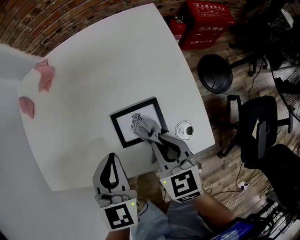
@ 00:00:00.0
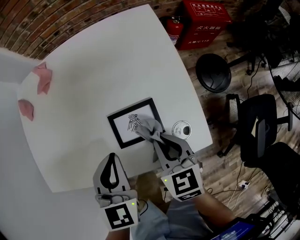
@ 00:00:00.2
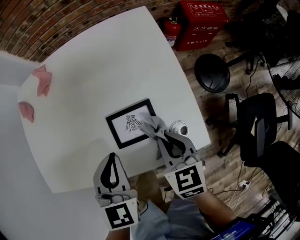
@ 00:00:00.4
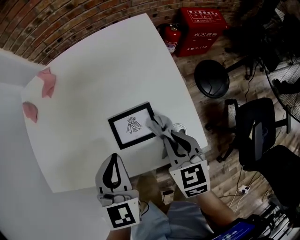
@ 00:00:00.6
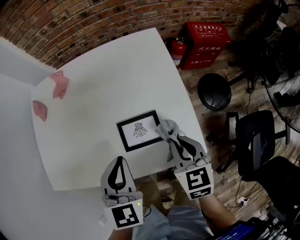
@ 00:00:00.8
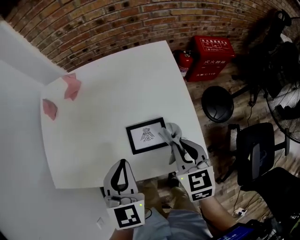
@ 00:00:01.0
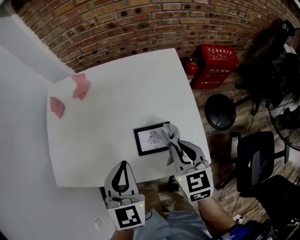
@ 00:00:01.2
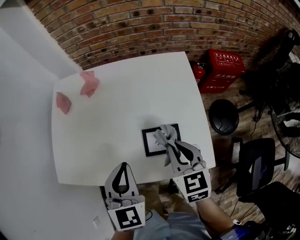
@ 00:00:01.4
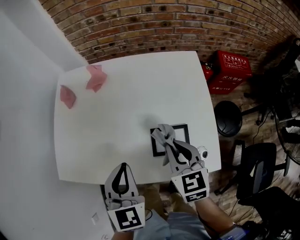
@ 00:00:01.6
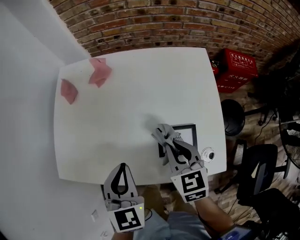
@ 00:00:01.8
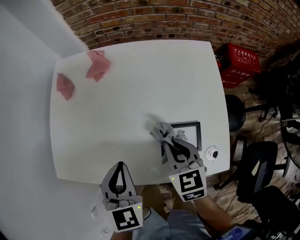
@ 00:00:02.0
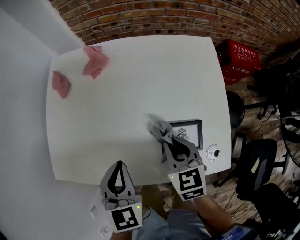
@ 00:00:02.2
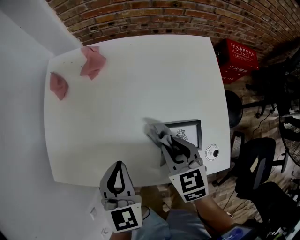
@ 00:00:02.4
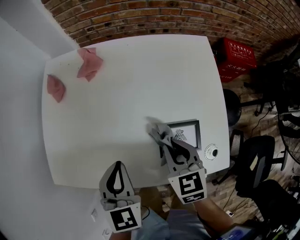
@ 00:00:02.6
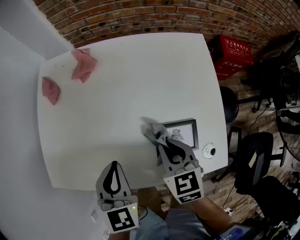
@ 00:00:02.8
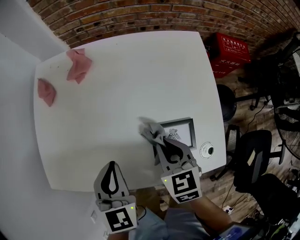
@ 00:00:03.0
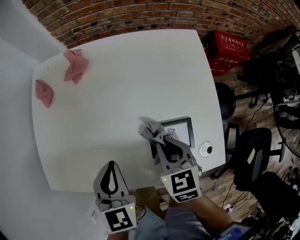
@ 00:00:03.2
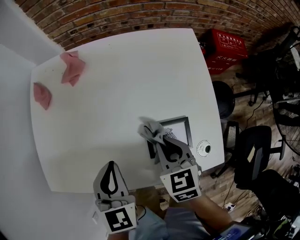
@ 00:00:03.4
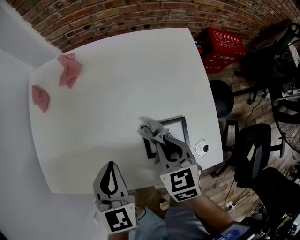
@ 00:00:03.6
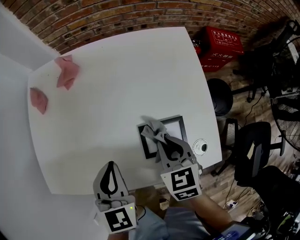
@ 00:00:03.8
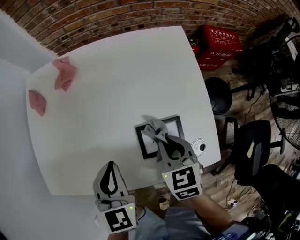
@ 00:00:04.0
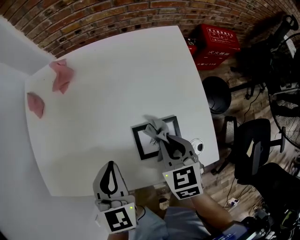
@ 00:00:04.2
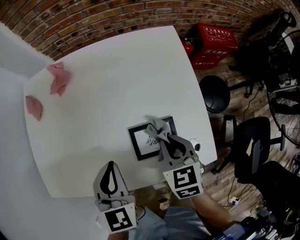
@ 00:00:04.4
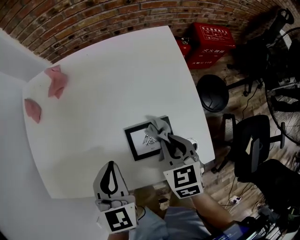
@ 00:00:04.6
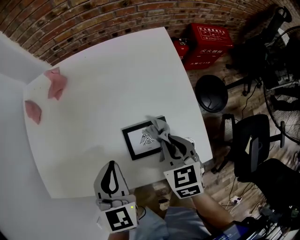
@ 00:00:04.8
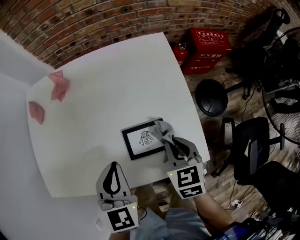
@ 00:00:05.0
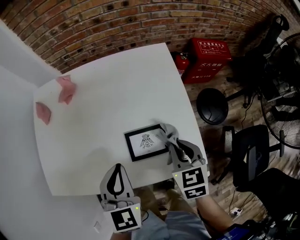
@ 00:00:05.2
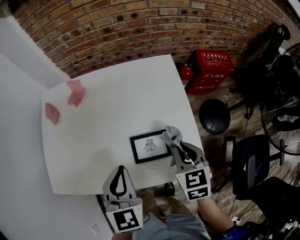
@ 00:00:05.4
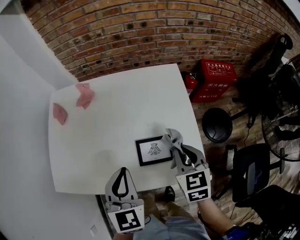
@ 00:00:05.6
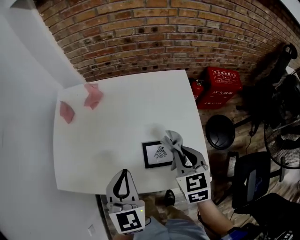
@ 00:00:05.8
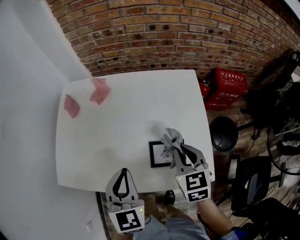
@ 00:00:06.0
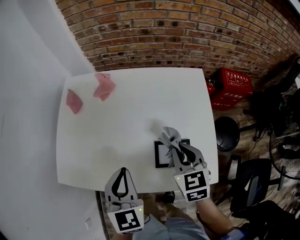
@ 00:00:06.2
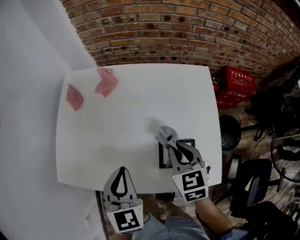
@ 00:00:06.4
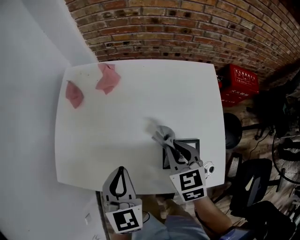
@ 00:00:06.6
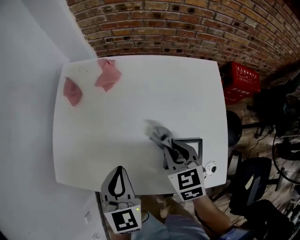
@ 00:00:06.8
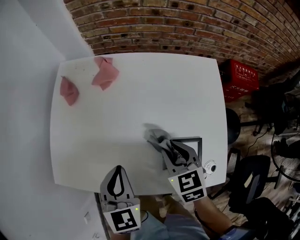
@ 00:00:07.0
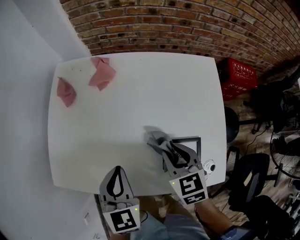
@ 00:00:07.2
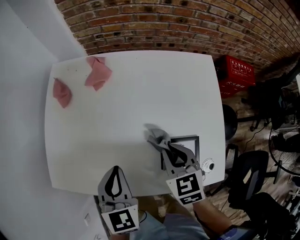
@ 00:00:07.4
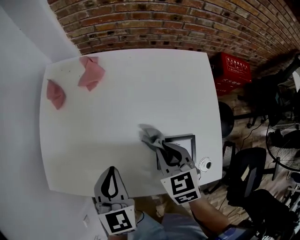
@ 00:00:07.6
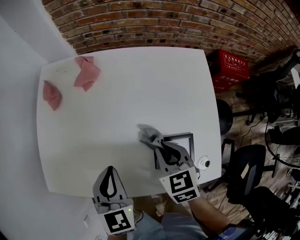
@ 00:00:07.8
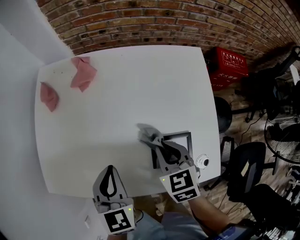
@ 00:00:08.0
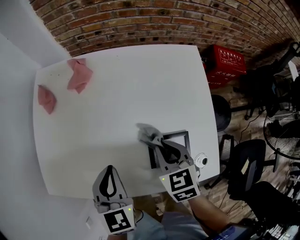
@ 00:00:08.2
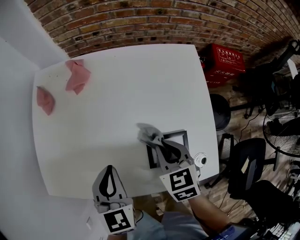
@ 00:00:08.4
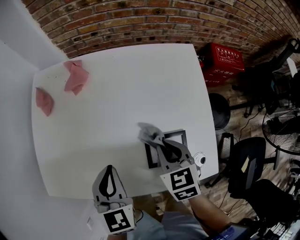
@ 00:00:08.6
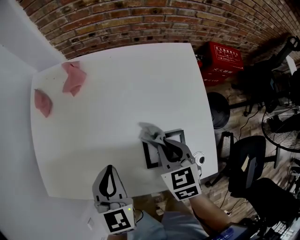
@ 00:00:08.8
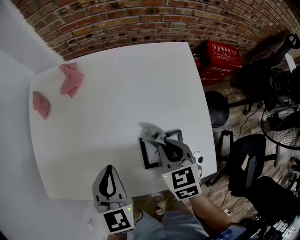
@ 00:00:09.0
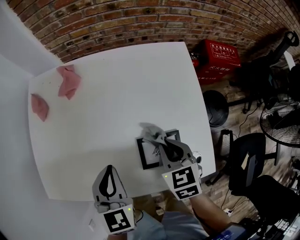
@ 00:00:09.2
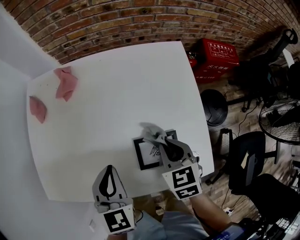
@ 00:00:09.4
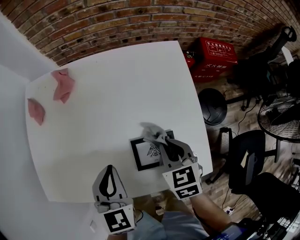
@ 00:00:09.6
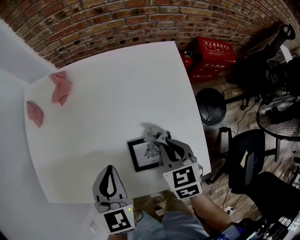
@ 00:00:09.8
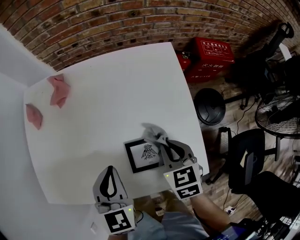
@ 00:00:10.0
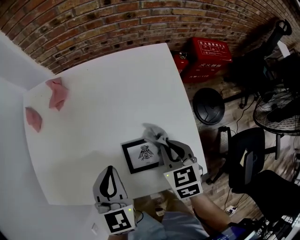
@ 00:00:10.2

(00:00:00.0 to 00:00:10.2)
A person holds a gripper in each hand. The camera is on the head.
00:00:00.0 - 00:00:01.4: The grippers both shift upward by some 10 cm.
00:00:01.4 - 00:00:03.0: Both grippers move downward and to the left, some 10 cm.
00:00:03.0 - 00:00:04.4: The grippers both shift to the right by about 5 cm.
00:00:04.4 - 00:00:05.8: The grippers both shift upward by approximately 10 cm.
00:00:05.8 - 00:00:07.2: The right gripper is displaced to the left, downward and forward by about 15 cm; the left gripper travels to the left and downward by approximately 10 cm.
00:00:07.2 - 00:00:08.8: The right gripper goes about 5 cm to the right.
00:00:08.8 - 00:00:10.2: The grippers both shift to the right by approximately 10 cm.

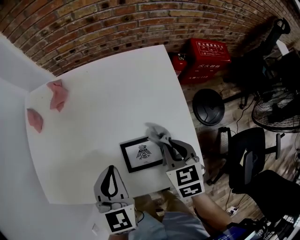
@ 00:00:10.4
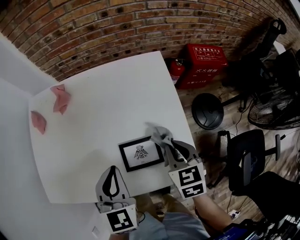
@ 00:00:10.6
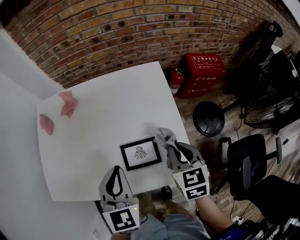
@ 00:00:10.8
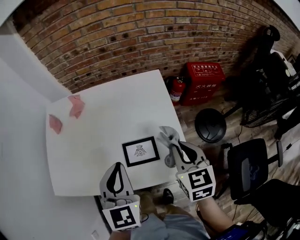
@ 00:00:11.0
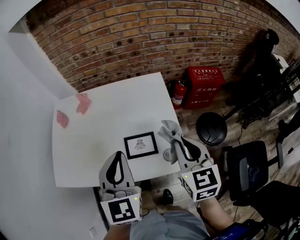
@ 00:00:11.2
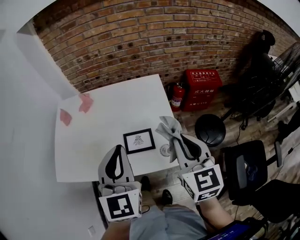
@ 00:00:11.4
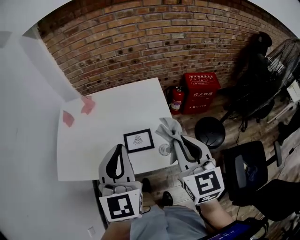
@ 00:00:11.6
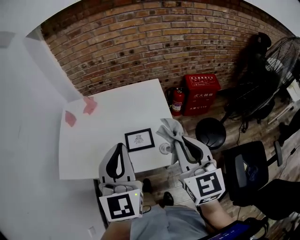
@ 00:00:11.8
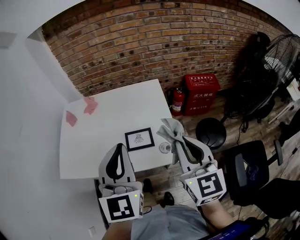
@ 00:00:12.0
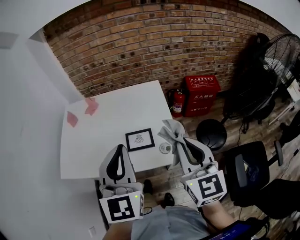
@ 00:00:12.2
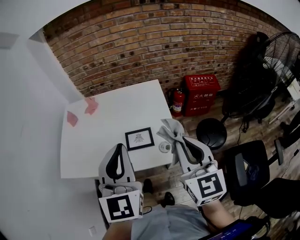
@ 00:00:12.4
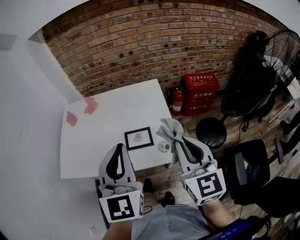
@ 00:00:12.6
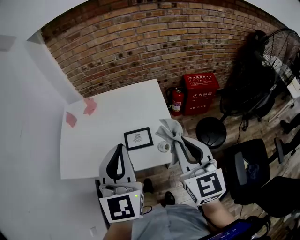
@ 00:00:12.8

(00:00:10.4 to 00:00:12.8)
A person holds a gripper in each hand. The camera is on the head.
00:00:10.4 - 00:00:11.6: Both grippers move upward and backward, roughly 30 cm. The left gripper rotates approximately 30 degrees. The right gripper tips its fingers upward by about 40 degrees.
00:00:11.6 - 00:00:12.8: The grippers stay close to where they were, moving slightly.

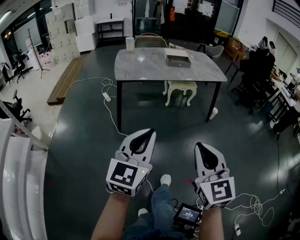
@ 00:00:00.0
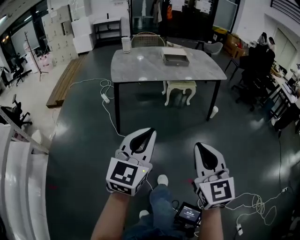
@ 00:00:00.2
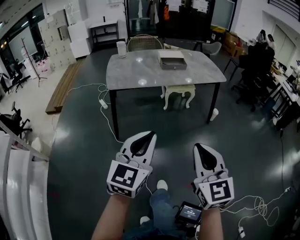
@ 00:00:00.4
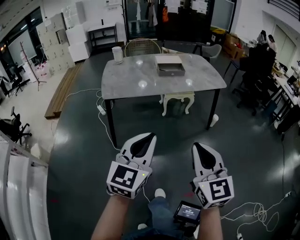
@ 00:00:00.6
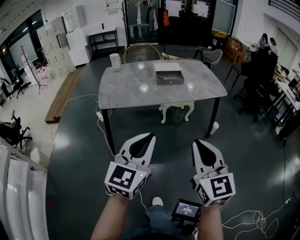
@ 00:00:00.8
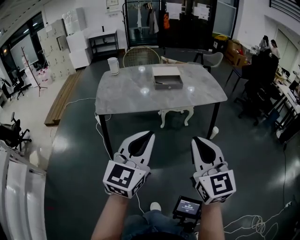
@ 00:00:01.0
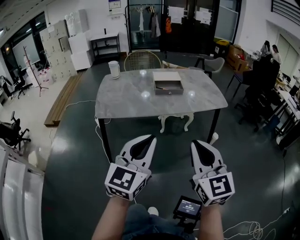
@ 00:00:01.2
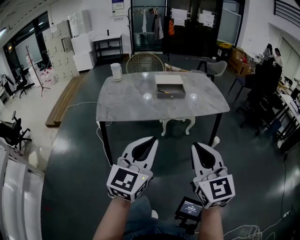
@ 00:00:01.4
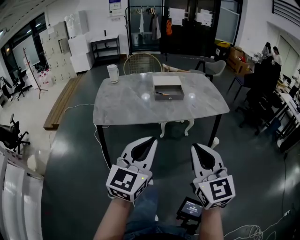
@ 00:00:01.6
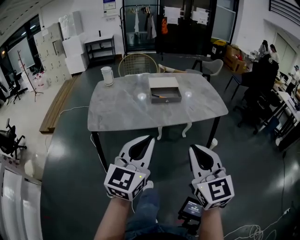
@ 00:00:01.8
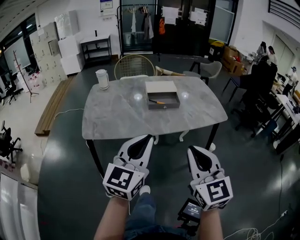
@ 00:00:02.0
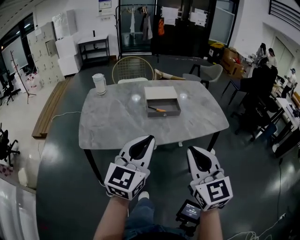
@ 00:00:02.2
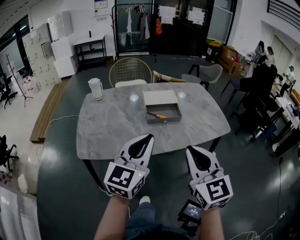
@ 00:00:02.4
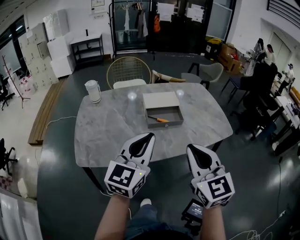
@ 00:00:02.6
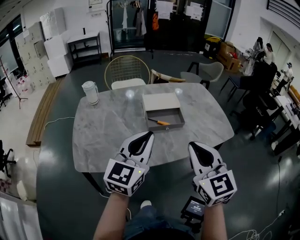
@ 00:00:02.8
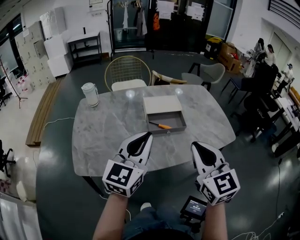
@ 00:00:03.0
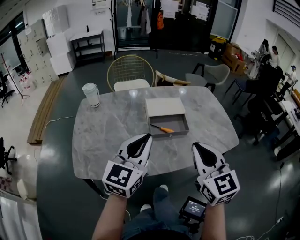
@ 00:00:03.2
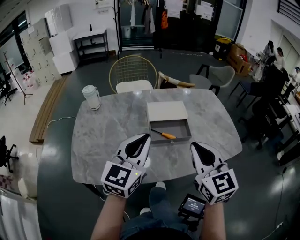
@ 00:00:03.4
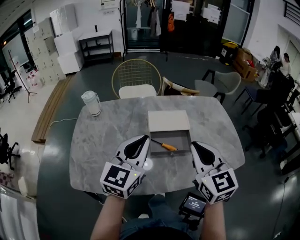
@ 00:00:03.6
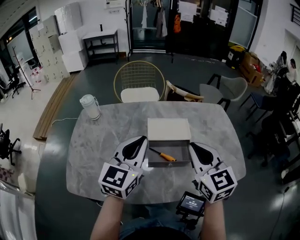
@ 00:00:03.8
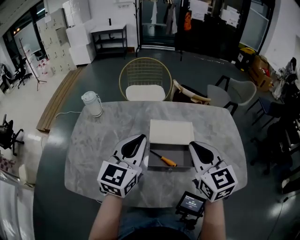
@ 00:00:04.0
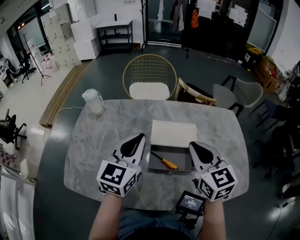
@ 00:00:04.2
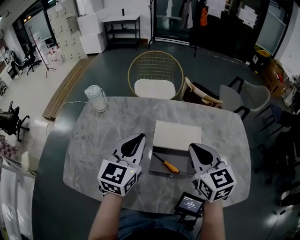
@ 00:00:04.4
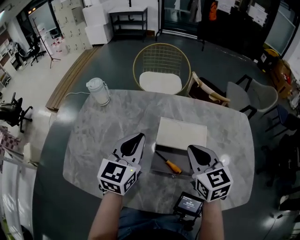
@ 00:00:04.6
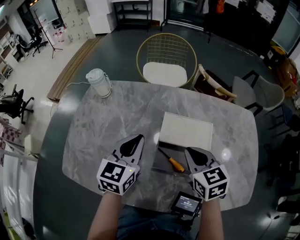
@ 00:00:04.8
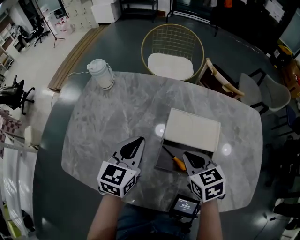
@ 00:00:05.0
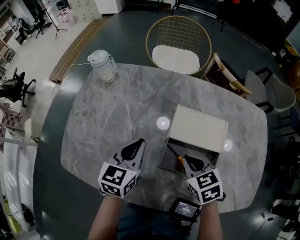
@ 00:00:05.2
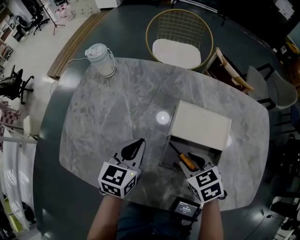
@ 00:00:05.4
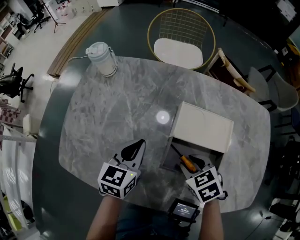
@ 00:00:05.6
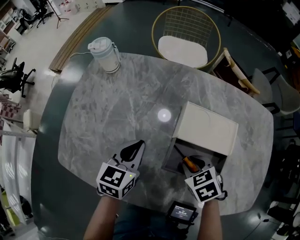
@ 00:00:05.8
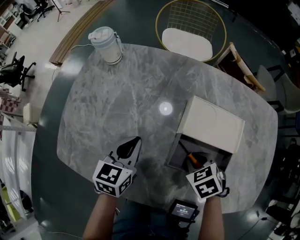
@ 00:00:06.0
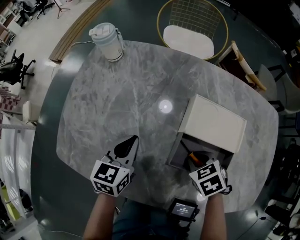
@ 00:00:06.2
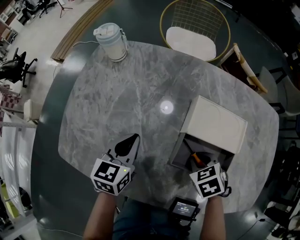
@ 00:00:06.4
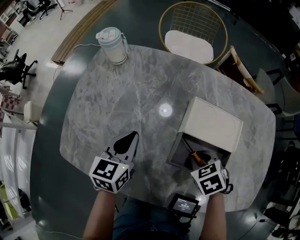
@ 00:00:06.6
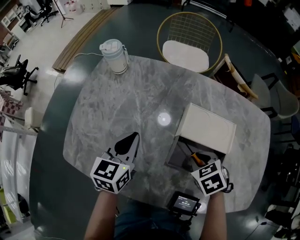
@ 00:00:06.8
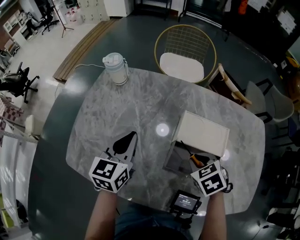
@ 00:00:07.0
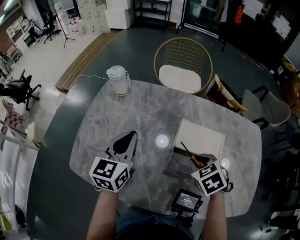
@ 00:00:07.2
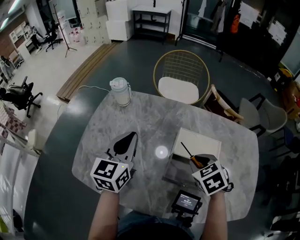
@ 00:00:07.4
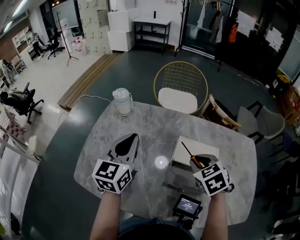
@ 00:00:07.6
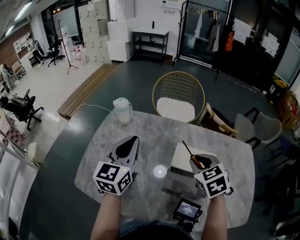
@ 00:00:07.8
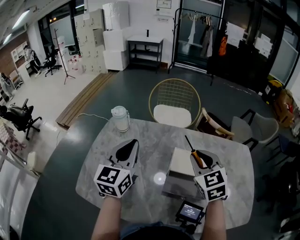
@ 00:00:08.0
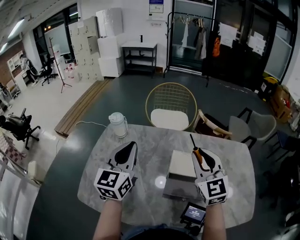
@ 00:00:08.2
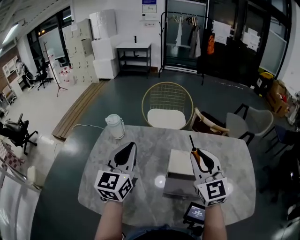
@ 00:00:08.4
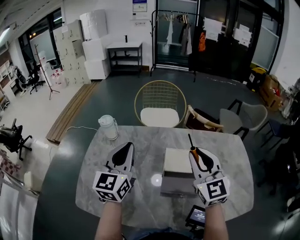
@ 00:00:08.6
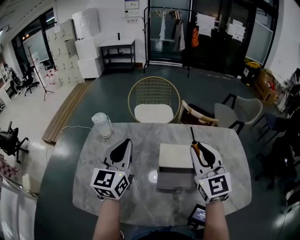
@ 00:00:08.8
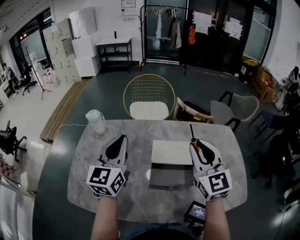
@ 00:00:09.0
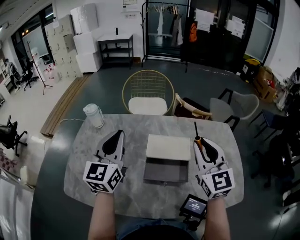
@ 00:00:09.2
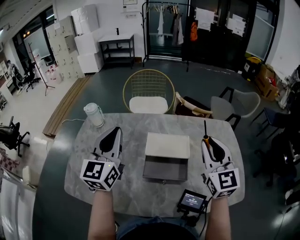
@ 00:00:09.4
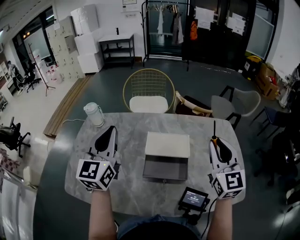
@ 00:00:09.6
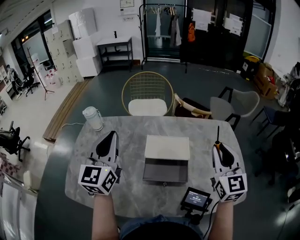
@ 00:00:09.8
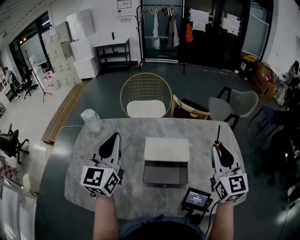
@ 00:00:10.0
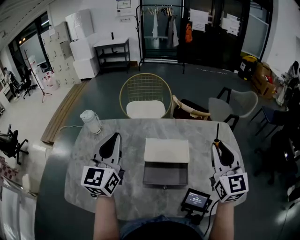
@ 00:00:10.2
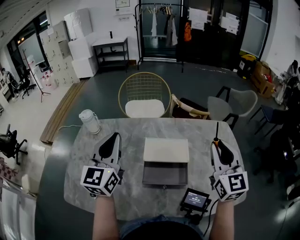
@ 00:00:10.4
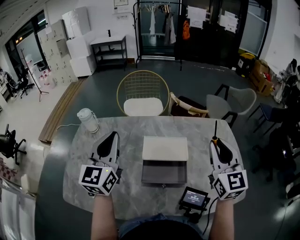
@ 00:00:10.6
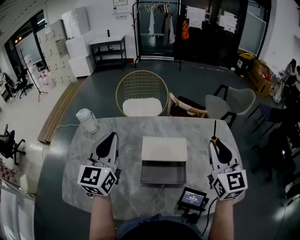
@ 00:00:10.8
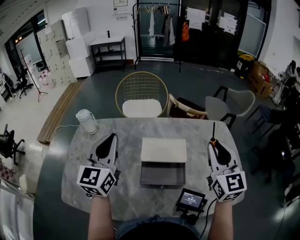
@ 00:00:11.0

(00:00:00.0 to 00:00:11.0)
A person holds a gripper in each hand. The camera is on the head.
00:00:00.0 - 00:00:01.6: The two grippers go some 35 cm forward.
00:00:01.6 - 00:00:03.2: The two grippers go some 35 cm forward.
00:00:03.2 - 00:00:04.8: The right gripper shifts by some 30 cm, and rotates about 40 degrees; the left gripper changes place by some 25 cm, and changes its angle by approximately 30 degrees.
00:00:04.8 - 00:00:06.2: The right gripper travels downward by roughly 15 cm, and angles its fingers downward, by about 40 degrees, while the left gripper shifts roughly 15 cm downward and to the left.
00:00:06.2 - 00:00:07.8: Both grippers move upward, about 25 cm. The left gripper rotates about 30 degrees. Meanwhile the right gripper swivels about 30 degrees.
00:00:07.8 - 00:00:09.4: The right gripper travels to the right, upward and backward by some 20 cm, and angles its fingers upward, by some 40 degrees. The left gripper moves to the right, about 10 cm.
00:00:09.4 - 00:00:11.0: There are only small adjustments of the grippers.
